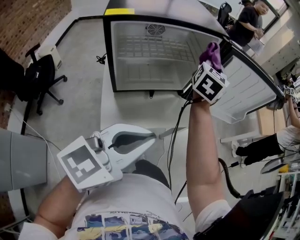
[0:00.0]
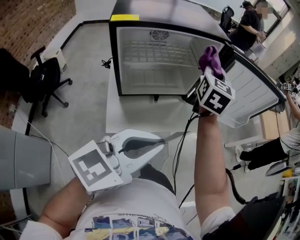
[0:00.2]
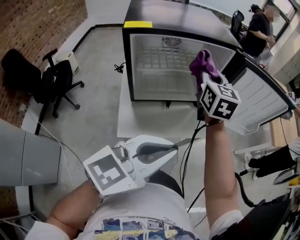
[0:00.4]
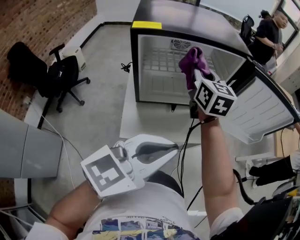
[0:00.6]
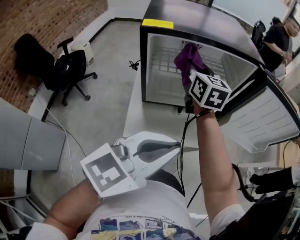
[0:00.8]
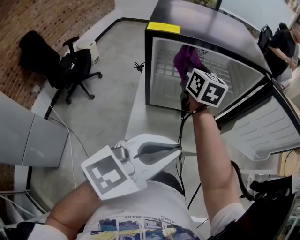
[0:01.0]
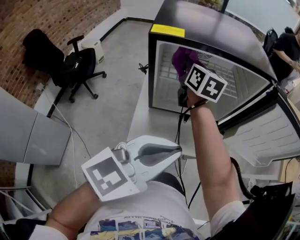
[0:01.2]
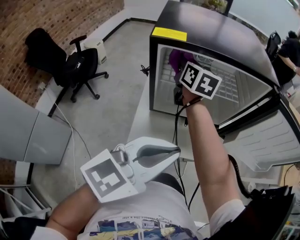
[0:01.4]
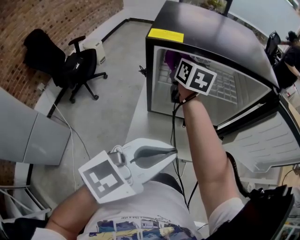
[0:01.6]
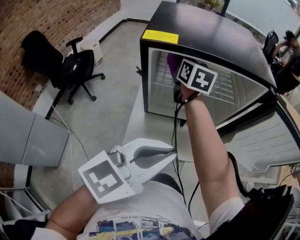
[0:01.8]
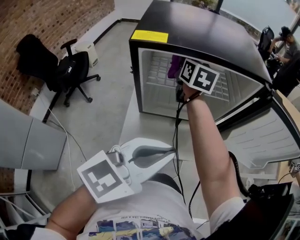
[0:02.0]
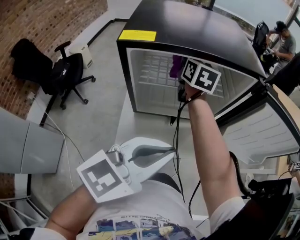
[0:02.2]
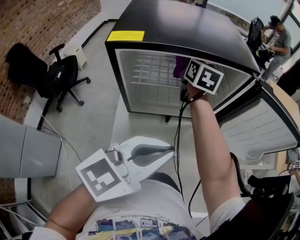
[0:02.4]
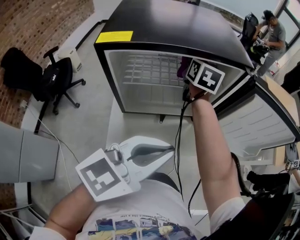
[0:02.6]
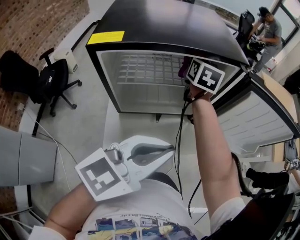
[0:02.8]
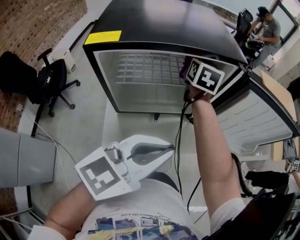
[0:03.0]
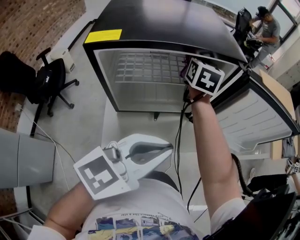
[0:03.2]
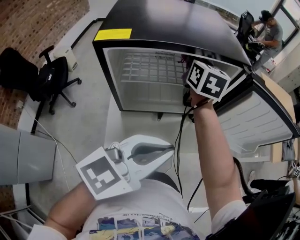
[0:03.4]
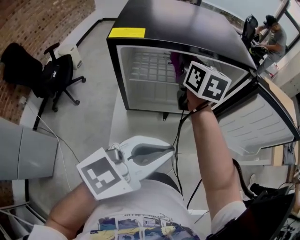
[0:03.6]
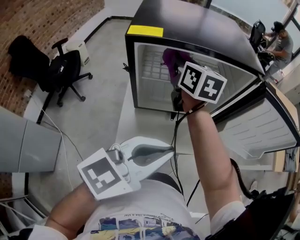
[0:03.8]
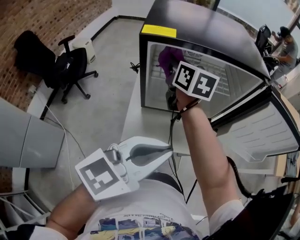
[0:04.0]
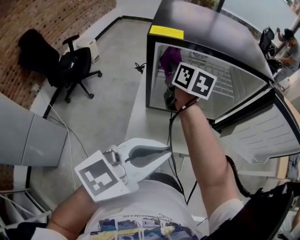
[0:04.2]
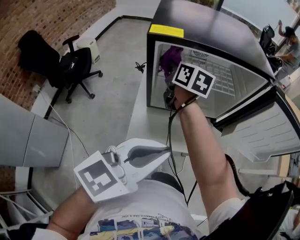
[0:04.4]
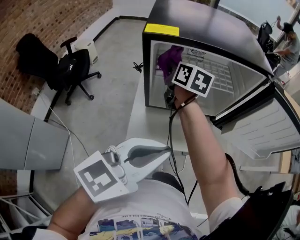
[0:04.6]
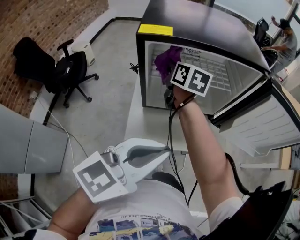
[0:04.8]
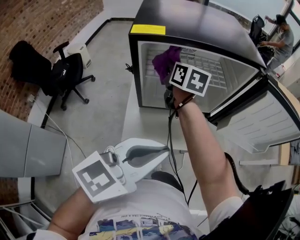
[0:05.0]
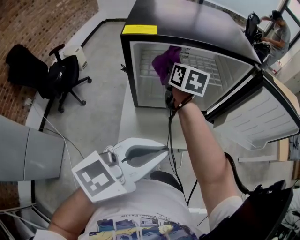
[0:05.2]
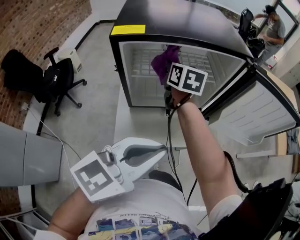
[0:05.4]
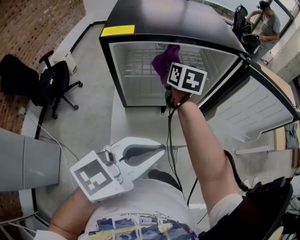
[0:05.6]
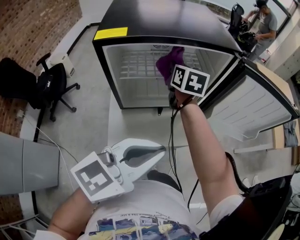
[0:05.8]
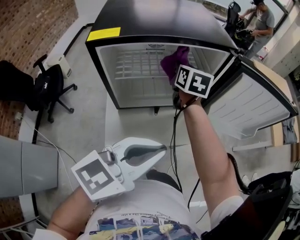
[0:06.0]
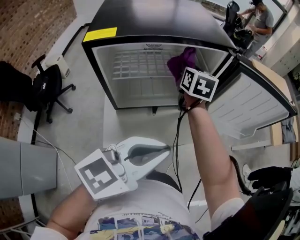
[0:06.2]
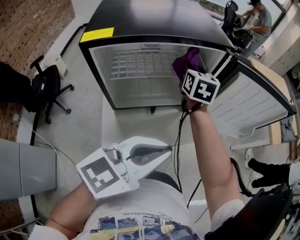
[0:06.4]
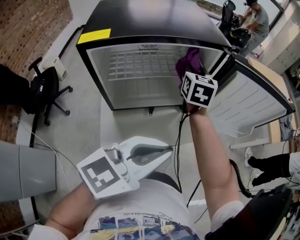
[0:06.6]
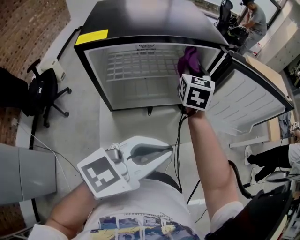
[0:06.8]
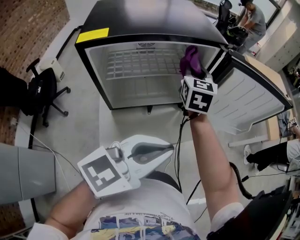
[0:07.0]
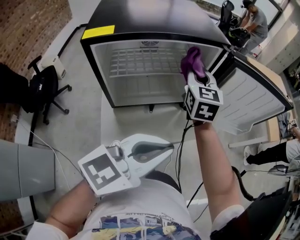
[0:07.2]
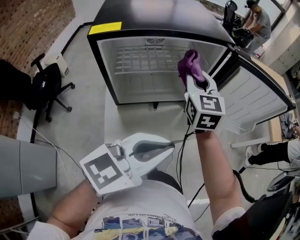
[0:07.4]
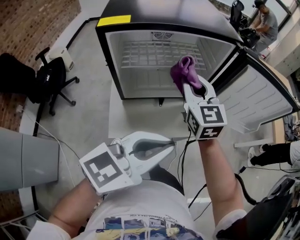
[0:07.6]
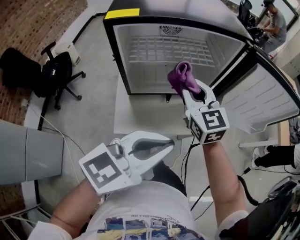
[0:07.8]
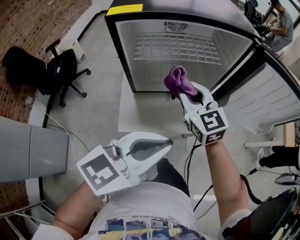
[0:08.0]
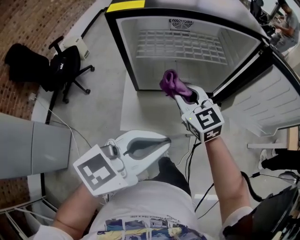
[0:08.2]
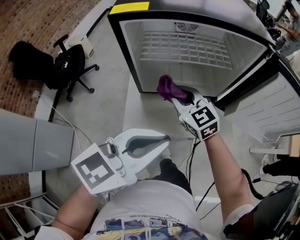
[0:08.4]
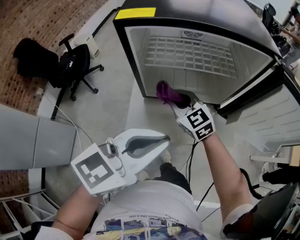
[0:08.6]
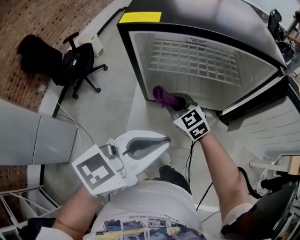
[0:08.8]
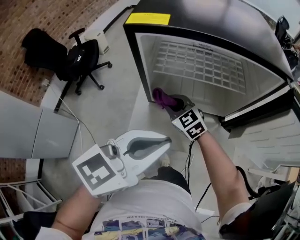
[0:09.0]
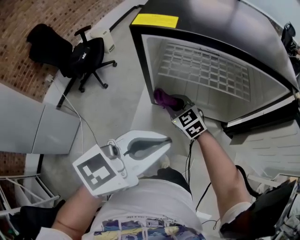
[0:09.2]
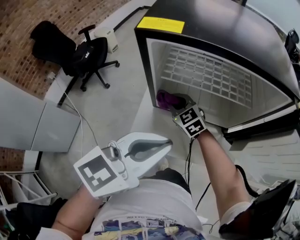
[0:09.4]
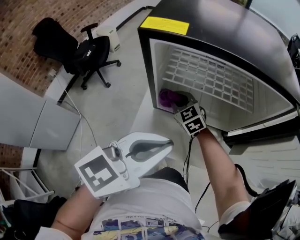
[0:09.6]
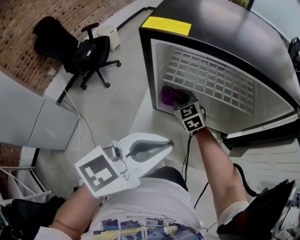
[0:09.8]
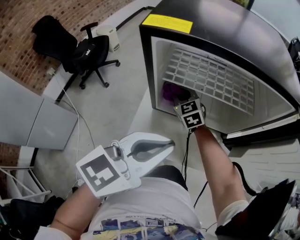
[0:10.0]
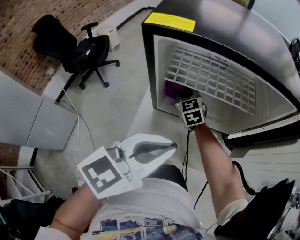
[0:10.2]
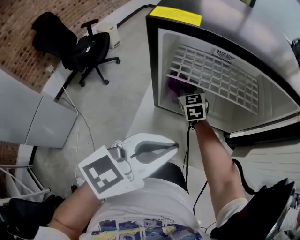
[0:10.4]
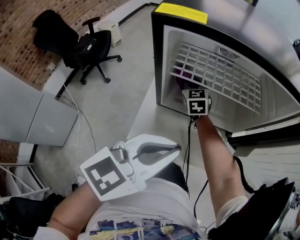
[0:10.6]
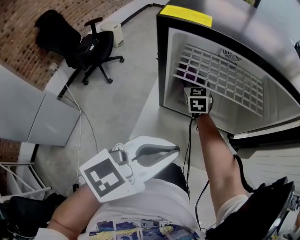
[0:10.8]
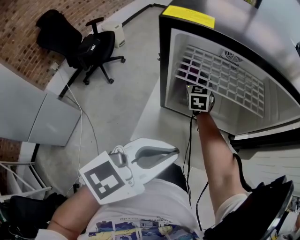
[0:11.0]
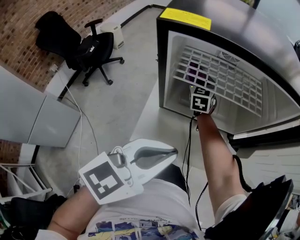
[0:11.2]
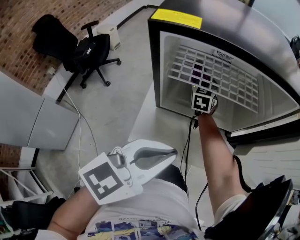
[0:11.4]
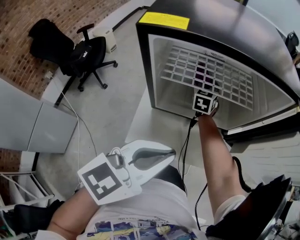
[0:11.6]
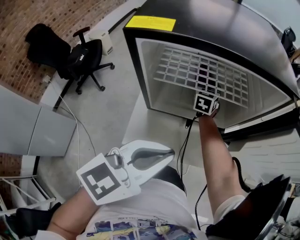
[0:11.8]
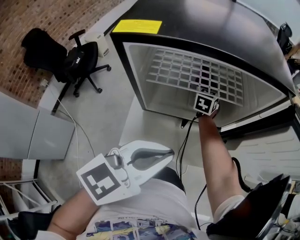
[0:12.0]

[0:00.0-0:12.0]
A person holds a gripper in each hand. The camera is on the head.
0:00.0 to 0:01.6: The right gripper changes place by approximately 35 cm, and changes its angle by roughly 60 degrees. The left gripper shifts by roughly 10 cm.
0:01.6 to 0:03.0: The right gripper is displaced to the right and forward by roughly 25 cm, and turns by about 30 degrees. Meanwhile the left gripper moves to the right and forward, approximately 10 cm.
0:03.0 to 0:04.4: The left gripper heads to the left and backward, covering some 10 cm. The right gripper moves to the left and backward, roughly 25 cm, and changes its angle by approximately 40 degrees.
0:04.4 to 0:06.0: The right gripper goes approximately 20 cm to the right, and rotates roughly 30 degrees; the left gripper shifts some 5 cm to the right.
0:06.0 to 0:07.6: The right gripper shifts roughly 15 cm backward and to the right, and changes its angle by about 30 degrees.
0:07.6 to 0:09.0: The right gripper is displaced downward by roughly 20 cm, and turns by roughly 50 degrees, while the left gripper changes place by approximately 10 cm, and rotates about 20 degrees.
0:09.0 to 0:10.4: The right gripper goes some 15 cm forward, and rotates approximately 20 degrees.
0:10.4 to 0:12.0: The right gripper is displaced to the right and forward by approximately 20 cm, and changes its angle by roughly 40 degrees.

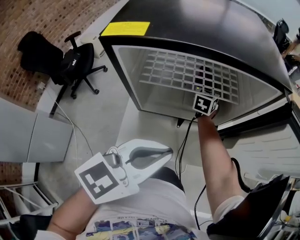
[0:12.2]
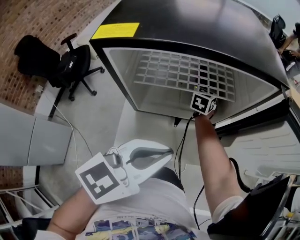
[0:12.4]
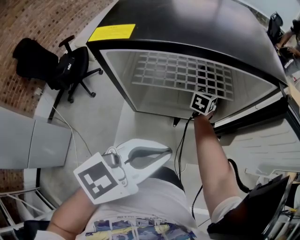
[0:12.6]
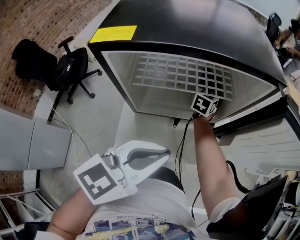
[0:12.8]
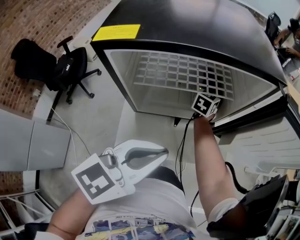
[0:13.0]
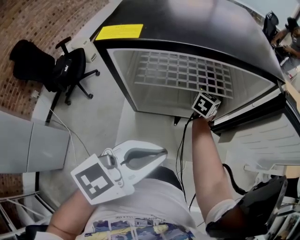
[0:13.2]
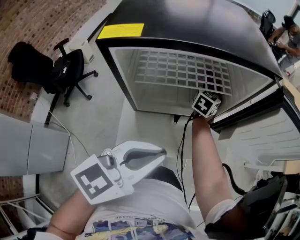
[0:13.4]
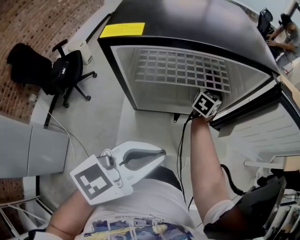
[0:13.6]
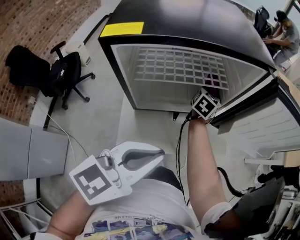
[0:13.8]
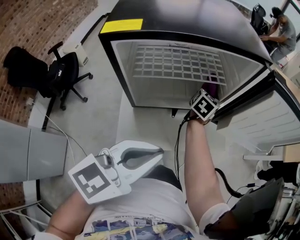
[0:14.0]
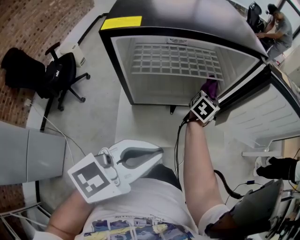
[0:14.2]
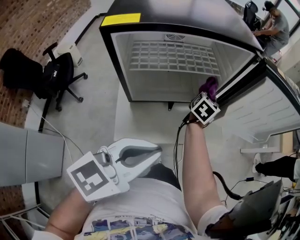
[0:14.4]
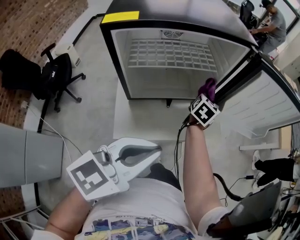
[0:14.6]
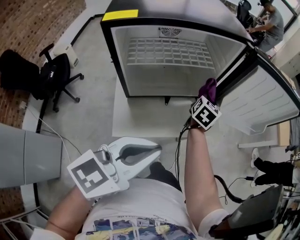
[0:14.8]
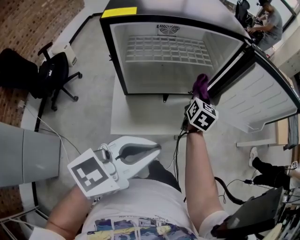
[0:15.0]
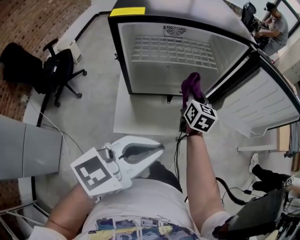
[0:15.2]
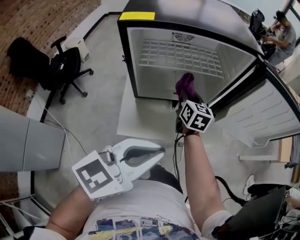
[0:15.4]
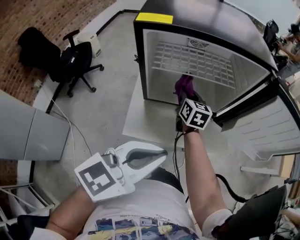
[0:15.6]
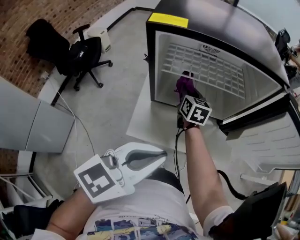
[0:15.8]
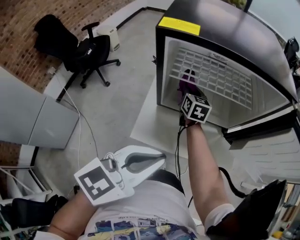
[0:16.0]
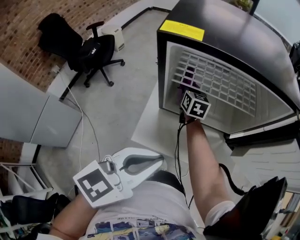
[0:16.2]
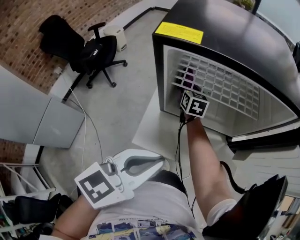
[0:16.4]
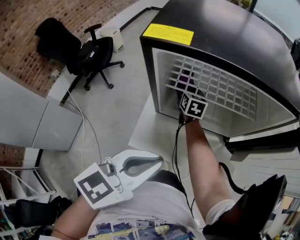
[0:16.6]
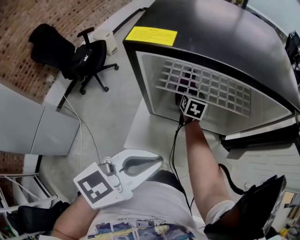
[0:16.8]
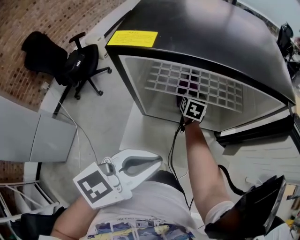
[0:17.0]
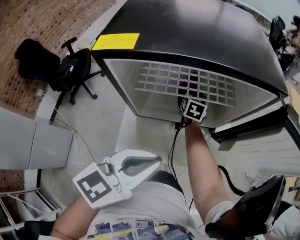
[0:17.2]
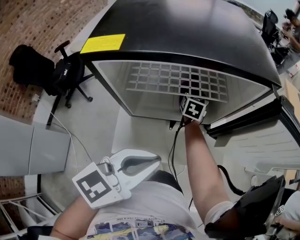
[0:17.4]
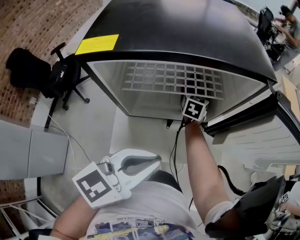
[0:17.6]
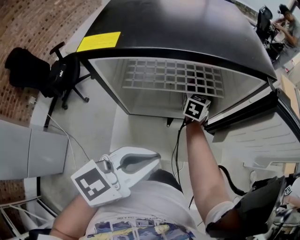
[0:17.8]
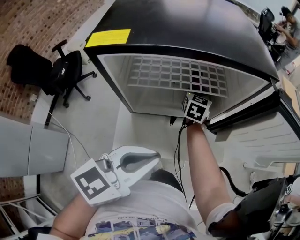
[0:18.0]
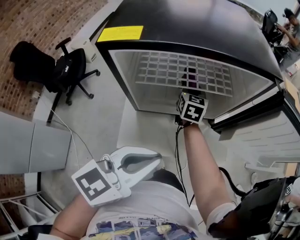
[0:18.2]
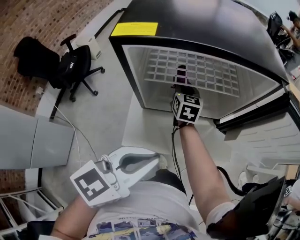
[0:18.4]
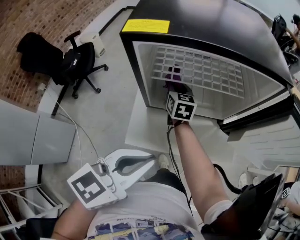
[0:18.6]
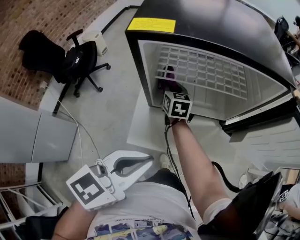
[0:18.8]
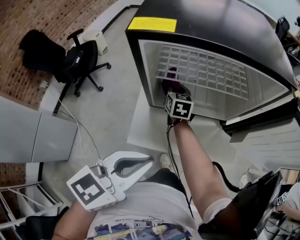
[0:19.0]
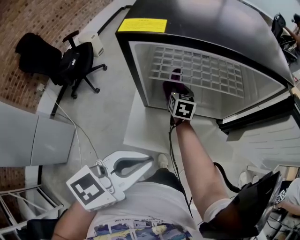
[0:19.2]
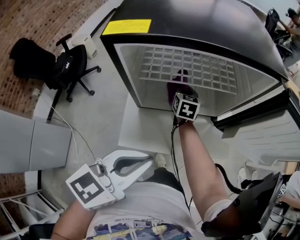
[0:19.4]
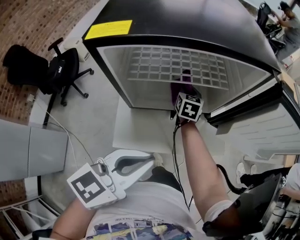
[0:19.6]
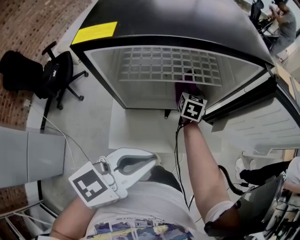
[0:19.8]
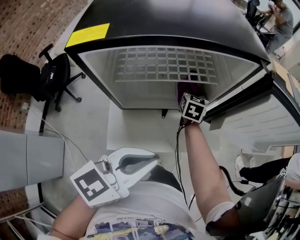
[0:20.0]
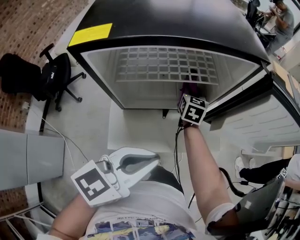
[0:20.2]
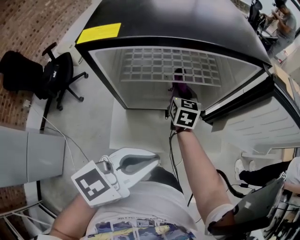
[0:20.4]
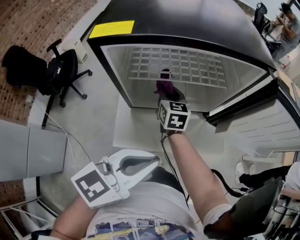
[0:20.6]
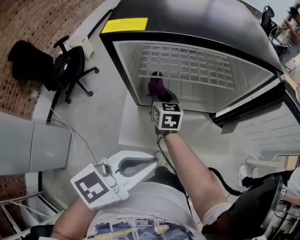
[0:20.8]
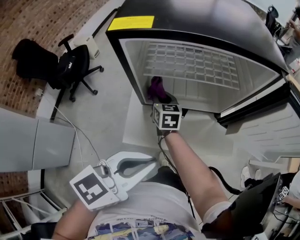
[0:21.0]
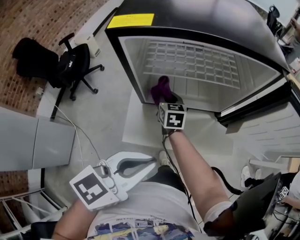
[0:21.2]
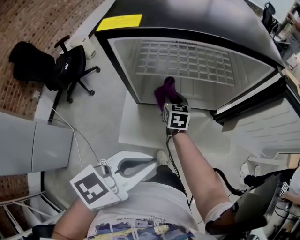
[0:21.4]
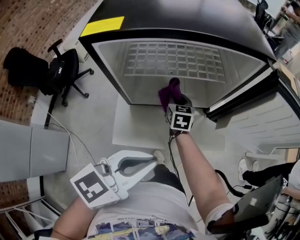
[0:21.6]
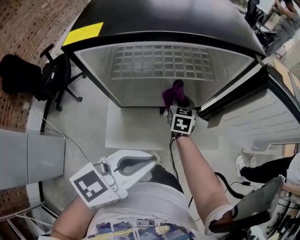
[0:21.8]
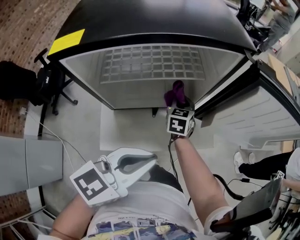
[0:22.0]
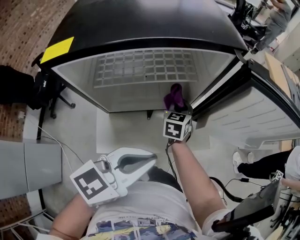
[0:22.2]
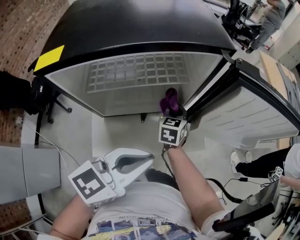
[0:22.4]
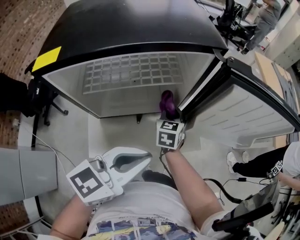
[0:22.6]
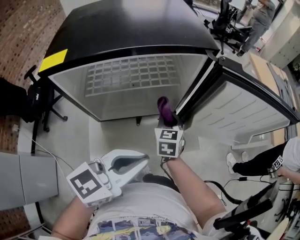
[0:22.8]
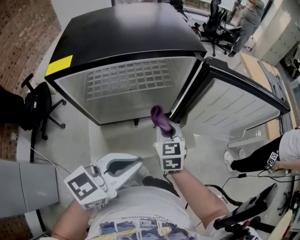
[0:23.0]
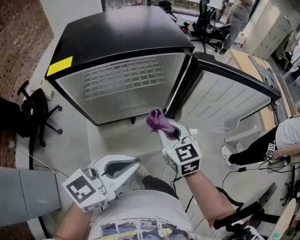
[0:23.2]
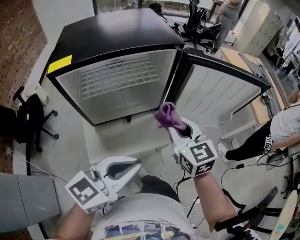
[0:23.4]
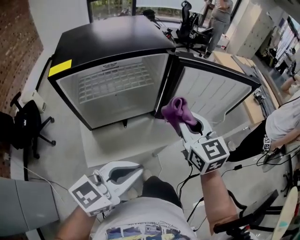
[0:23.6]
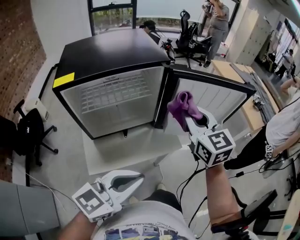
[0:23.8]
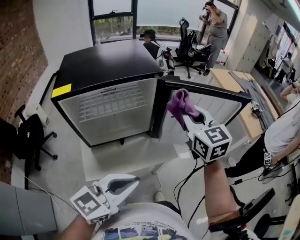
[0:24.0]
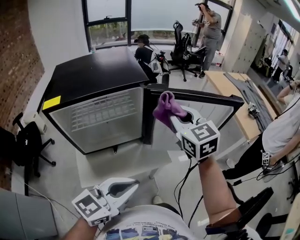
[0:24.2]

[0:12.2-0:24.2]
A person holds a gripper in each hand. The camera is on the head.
0:12.2 to 0:13.8: The right gripper is displaced to the right by roughly 10 cm, and rotates about 30 degrees.
0:13.8 to 0:15.2: The left gripper travels backward by some 5 cm; the right gripper is displaced backward by some 15 cm, and swivels approximately 30 degrees.
0:15.2 to 0:16.6: The left gripper travels to the left by roughly 5 cm, and turns by about 20 degrees. The right gripper goes approximately 25 cm to the left, forward and downward, and changes its angle by about 20 degrees.
0:16.6 to 0:18.2: The right gripper heads to the right, covering roughly 15 cm.
0:18.2 to 0:19.8: The right gripper heads to the right and downward, covering approximately 10 cm.
0:19.8 to 0:21.2: The right gripper moves to the left and backward, some 20 cm, and swivels approximately 20 degrees; the left gripper changes place by approximately 5 cm.
0:21.2 to 0:22.6: The right gripper moves to the right, about 20 cm, and rotates about 30 degrees. The left gripper travels forward and to the right by about 15 cm.
0:22.6 to 0:24.2: The right gripper is displaced upward and to the right by approximately 35 cm, and swivels approximately 30 degrees; the left gripper goes some 10 cm to the right and backward.
